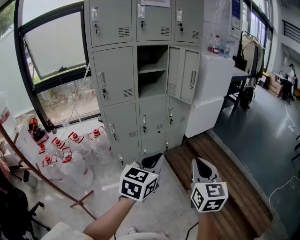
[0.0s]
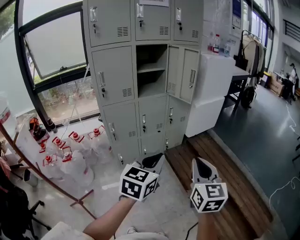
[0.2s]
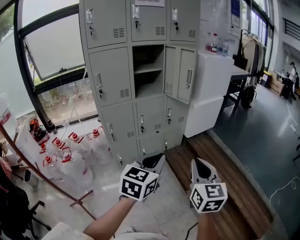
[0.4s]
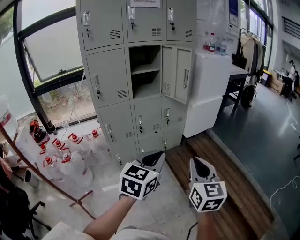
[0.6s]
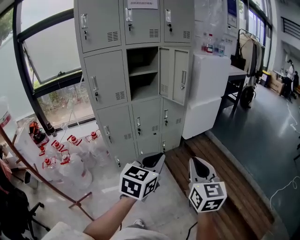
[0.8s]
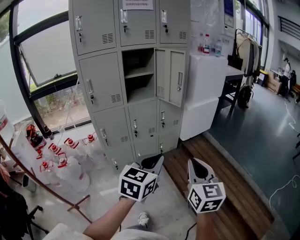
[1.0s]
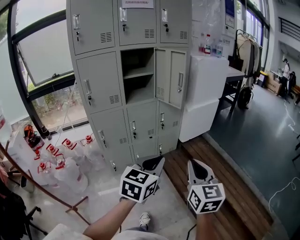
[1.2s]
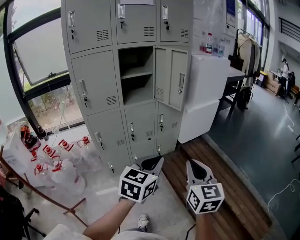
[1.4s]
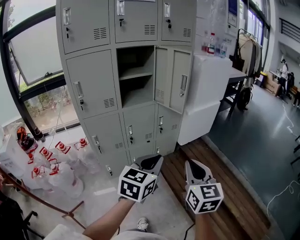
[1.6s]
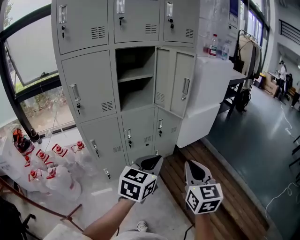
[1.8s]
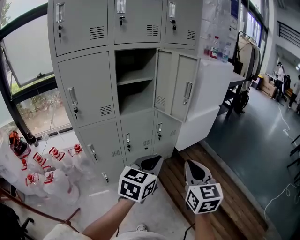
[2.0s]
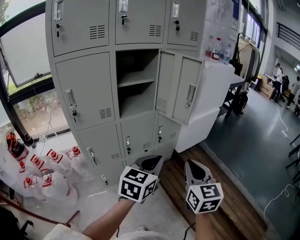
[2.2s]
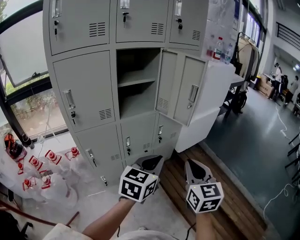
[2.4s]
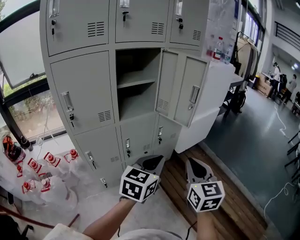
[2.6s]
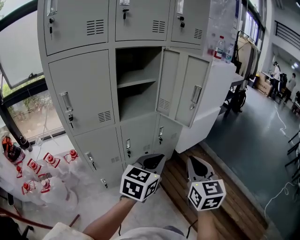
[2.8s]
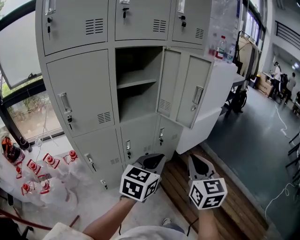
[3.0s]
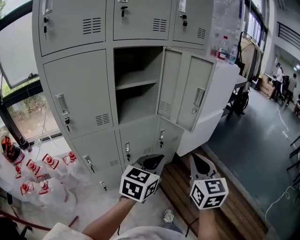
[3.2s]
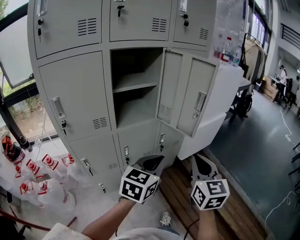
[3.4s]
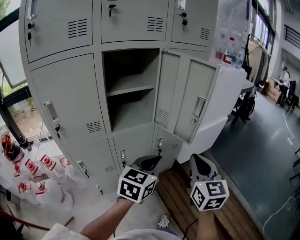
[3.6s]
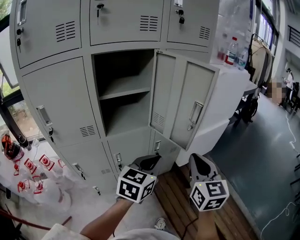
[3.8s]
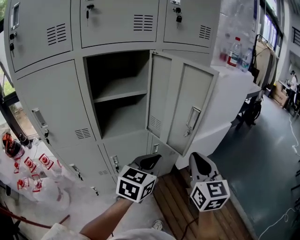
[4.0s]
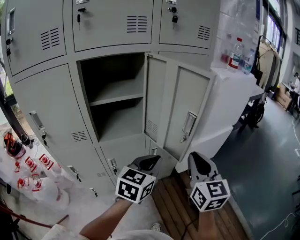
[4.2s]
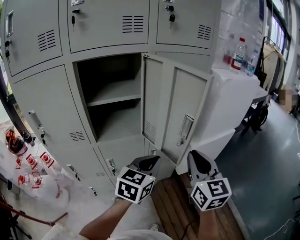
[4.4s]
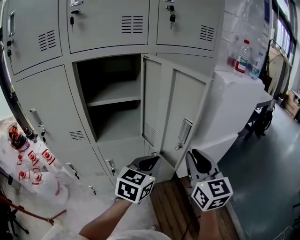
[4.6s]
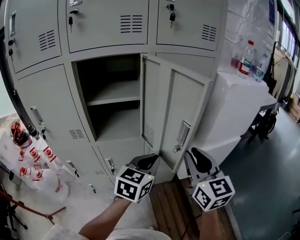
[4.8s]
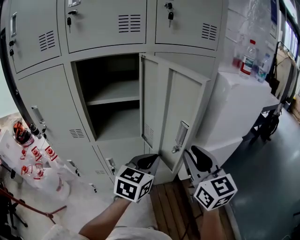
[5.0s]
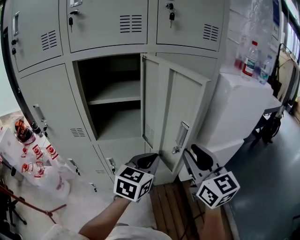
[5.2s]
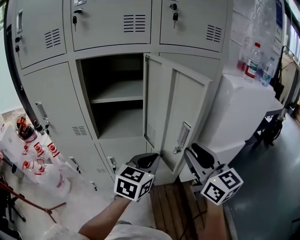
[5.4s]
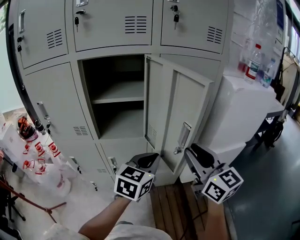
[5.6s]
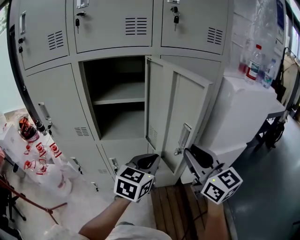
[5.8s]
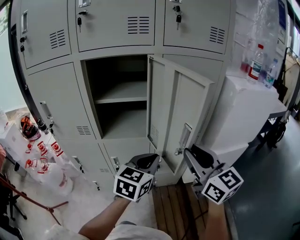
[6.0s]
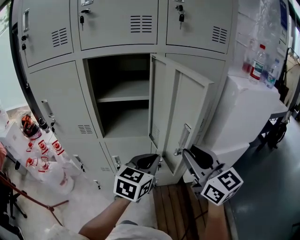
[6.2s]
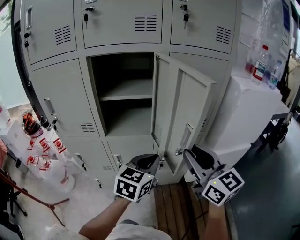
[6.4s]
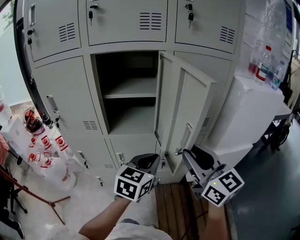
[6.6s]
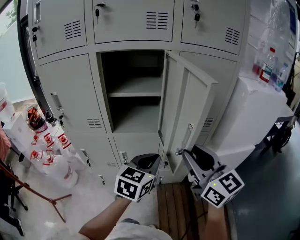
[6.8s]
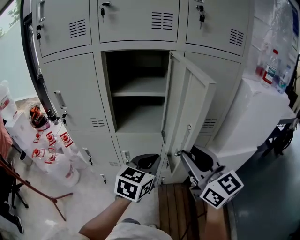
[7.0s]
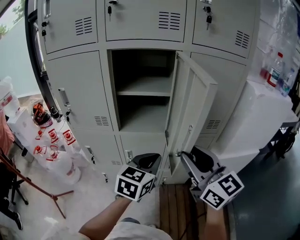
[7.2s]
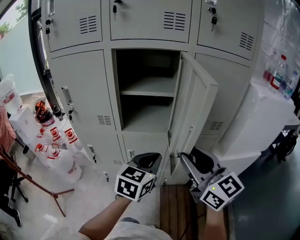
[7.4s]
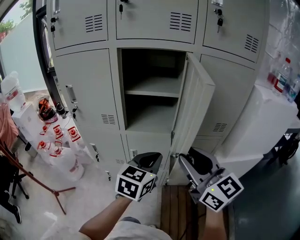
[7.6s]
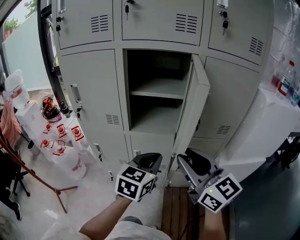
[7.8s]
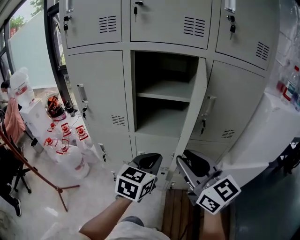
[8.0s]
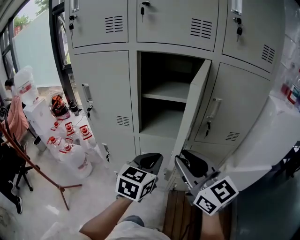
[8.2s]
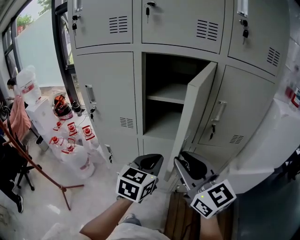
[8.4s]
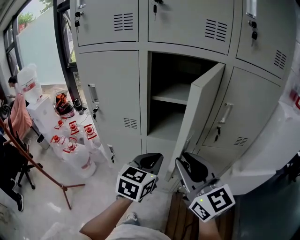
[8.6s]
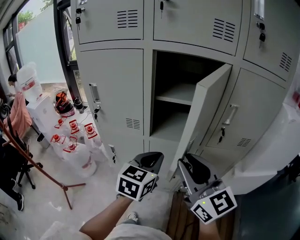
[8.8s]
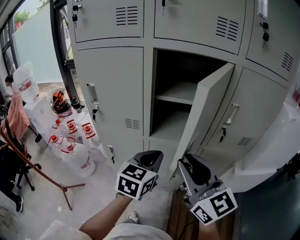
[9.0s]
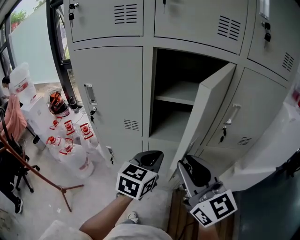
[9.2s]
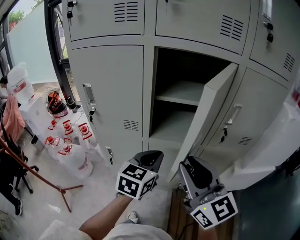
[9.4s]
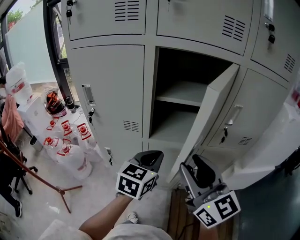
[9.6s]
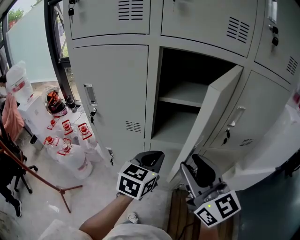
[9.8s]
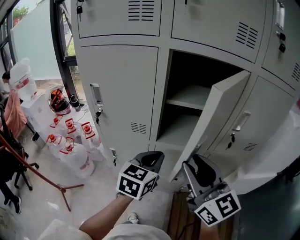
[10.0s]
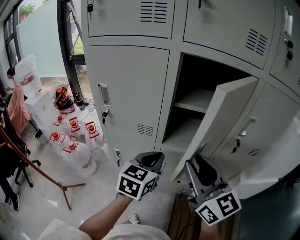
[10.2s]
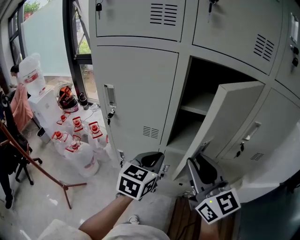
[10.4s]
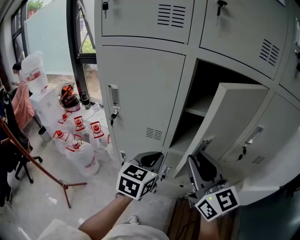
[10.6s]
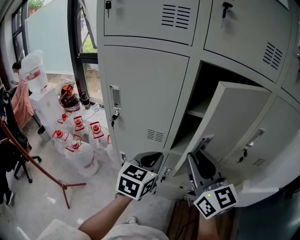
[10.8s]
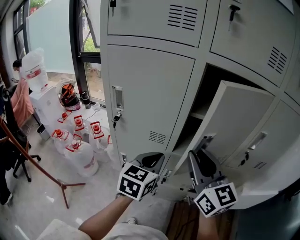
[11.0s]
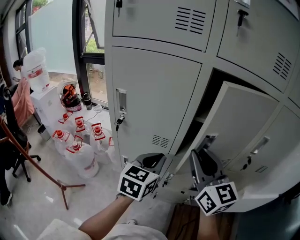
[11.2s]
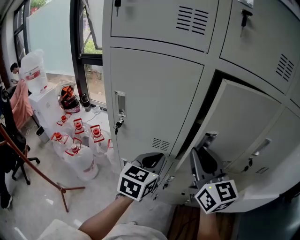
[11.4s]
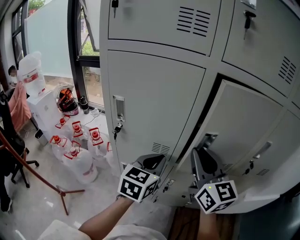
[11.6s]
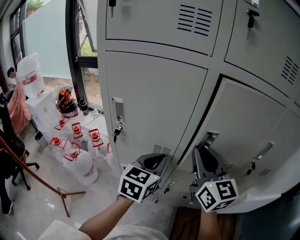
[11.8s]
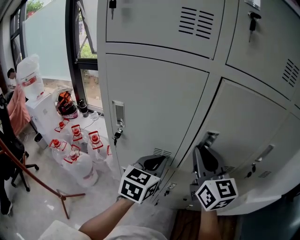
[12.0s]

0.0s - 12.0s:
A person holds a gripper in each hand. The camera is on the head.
0.0s - 1.6s: Both grippers travel together forward, roughly 15 cm.
1.6s - 3.0s: The grippers both shift forward and to the left by some 20 cm.
3.0s - 4.4s: Both grippers travel together forward, roughly 25 cm.
4.4s - 6.0s: The right gripper changes place by some 5 cm, and changes its angle by some 30 degrees.
6.0s - 7.6s: Both grippers move to the left, some 10 cm.
7.6s - 9.0s: The right gripper shifts approximately 10 cm to the left, while the left gripper is displaced to the left and forward by about 10 cm.
9.0s - 10.4s: The left gripper shifts about 10 cm to the left, while the right gripper shifts approximately 10 cm forward and to the left.
10.4s - 12.0s: The left gripper shifts roughly 10 cm forward and to the left; the right gripper goes approximately 15 cm forward.

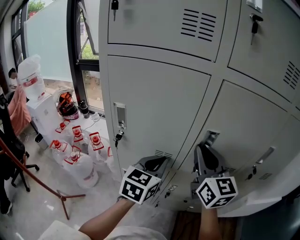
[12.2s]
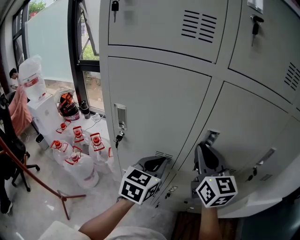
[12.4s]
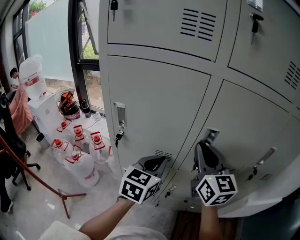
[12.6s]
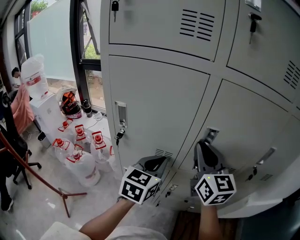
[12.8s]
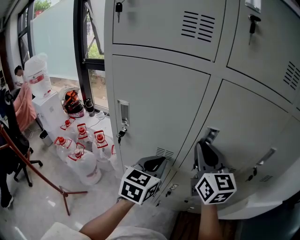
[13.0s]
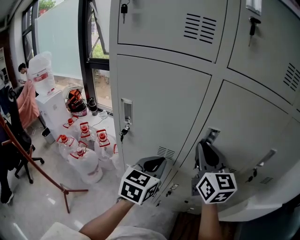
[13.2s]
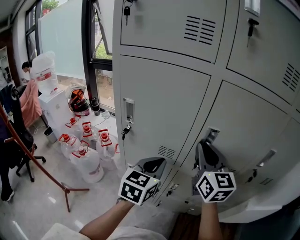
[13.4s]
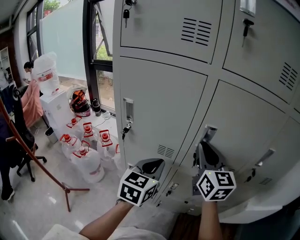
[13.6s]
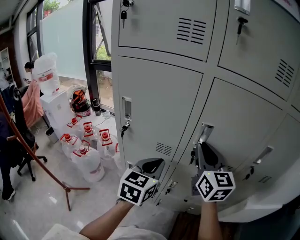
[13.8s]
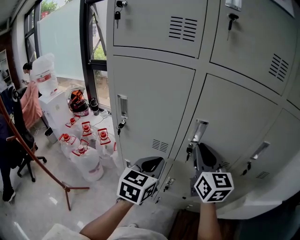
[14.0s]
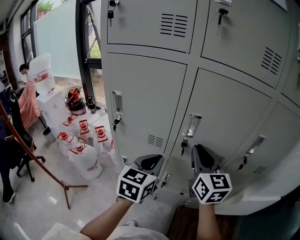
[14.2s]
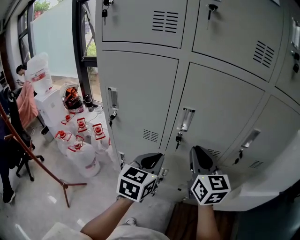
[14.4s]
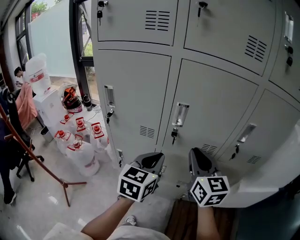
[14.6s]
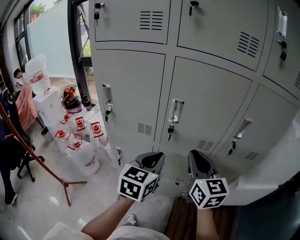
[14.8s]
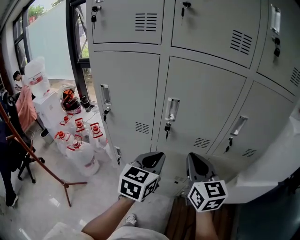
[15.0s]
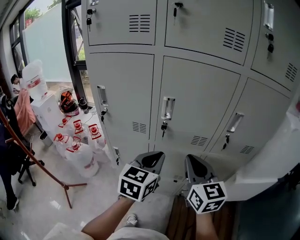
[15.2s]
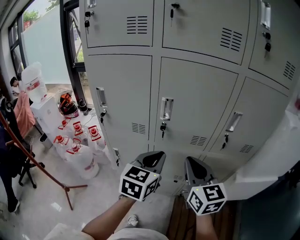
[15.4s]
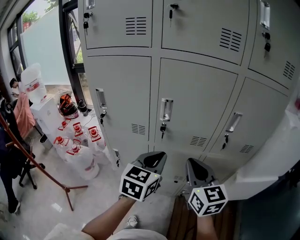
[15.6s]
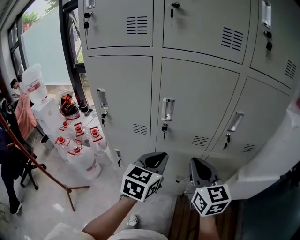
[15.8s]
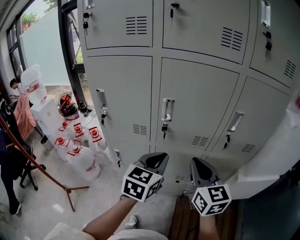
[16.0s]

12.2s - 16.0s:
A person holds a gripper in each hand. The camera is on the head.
12.2s - 13.4s: The grippers stay close to where they were, moving slightly.
13.4s - 14.8s: The right gripper travels backward and to the right by about 15 cm. Meanwhile the left gripper goes approximately 15 cm to the right and backward.
14.8s - 16.0s: The right gripper changes place by about 5 cm.

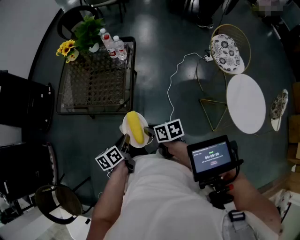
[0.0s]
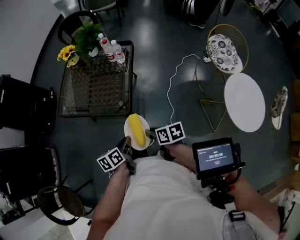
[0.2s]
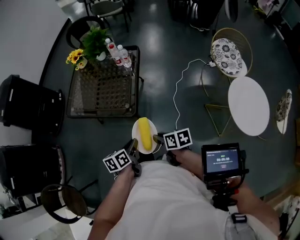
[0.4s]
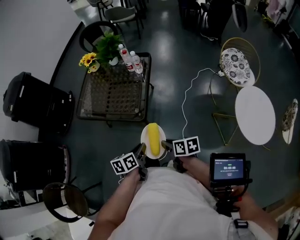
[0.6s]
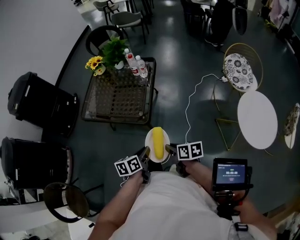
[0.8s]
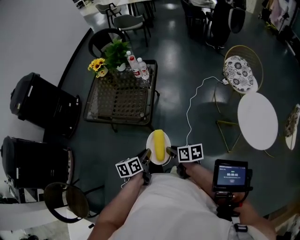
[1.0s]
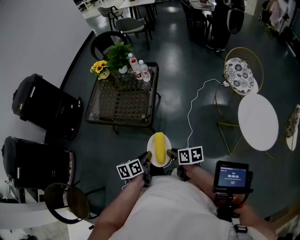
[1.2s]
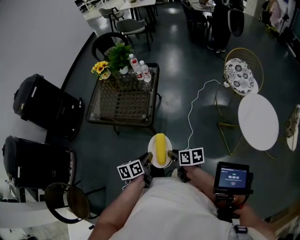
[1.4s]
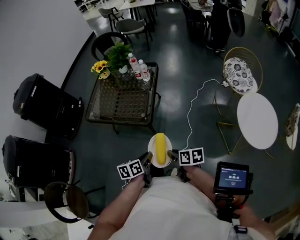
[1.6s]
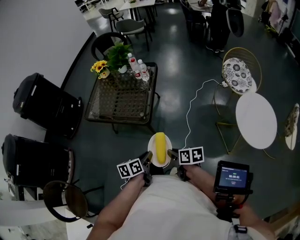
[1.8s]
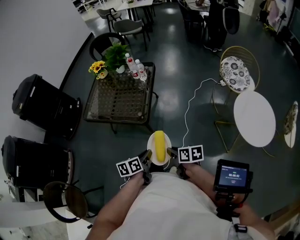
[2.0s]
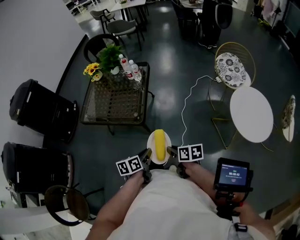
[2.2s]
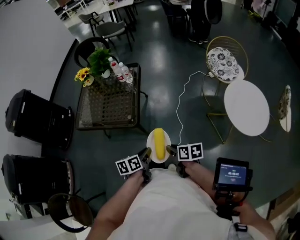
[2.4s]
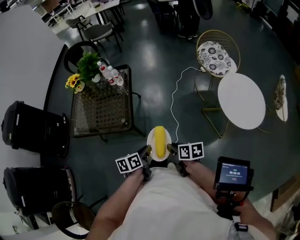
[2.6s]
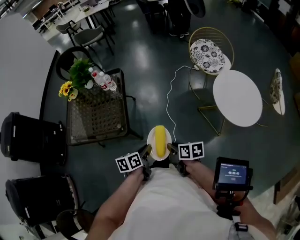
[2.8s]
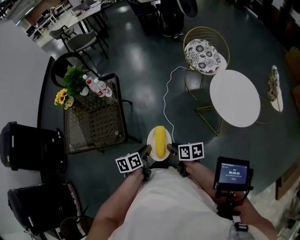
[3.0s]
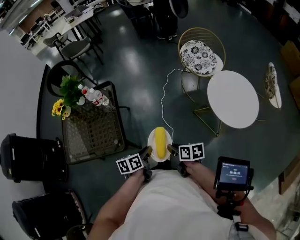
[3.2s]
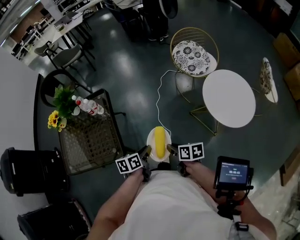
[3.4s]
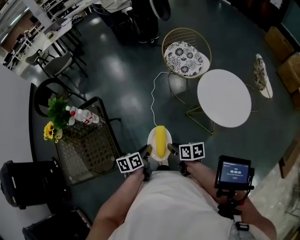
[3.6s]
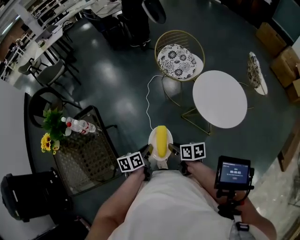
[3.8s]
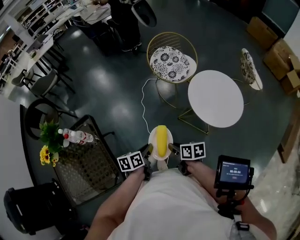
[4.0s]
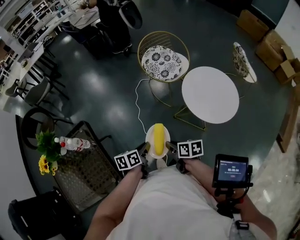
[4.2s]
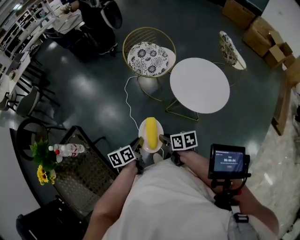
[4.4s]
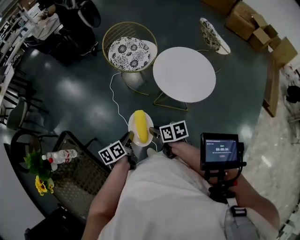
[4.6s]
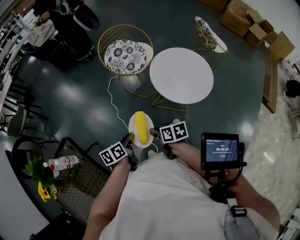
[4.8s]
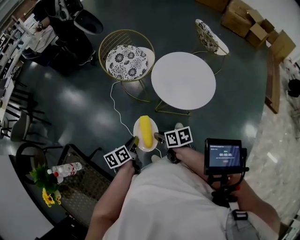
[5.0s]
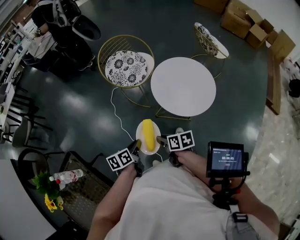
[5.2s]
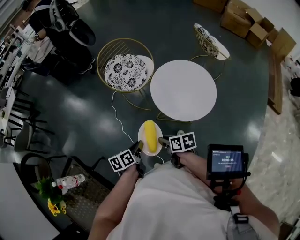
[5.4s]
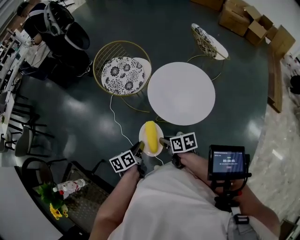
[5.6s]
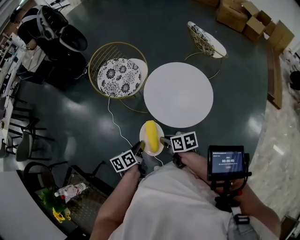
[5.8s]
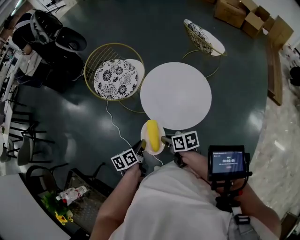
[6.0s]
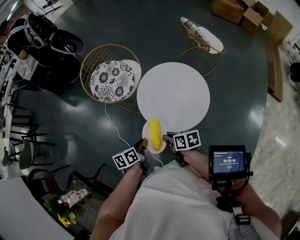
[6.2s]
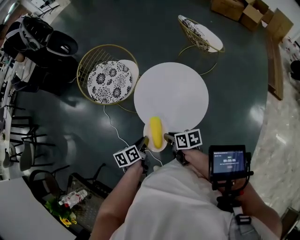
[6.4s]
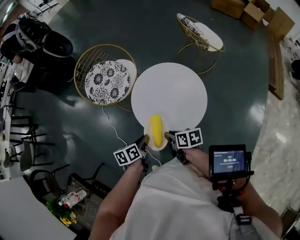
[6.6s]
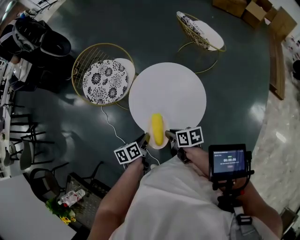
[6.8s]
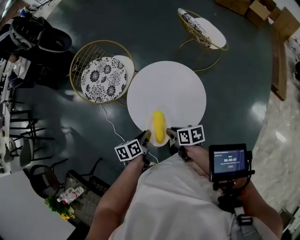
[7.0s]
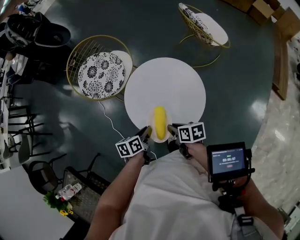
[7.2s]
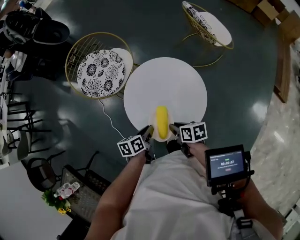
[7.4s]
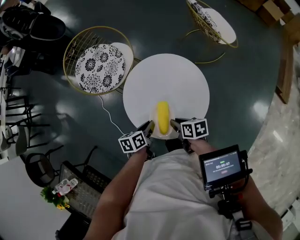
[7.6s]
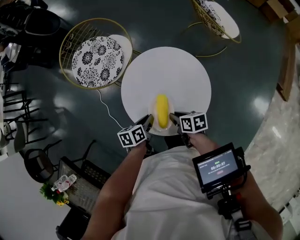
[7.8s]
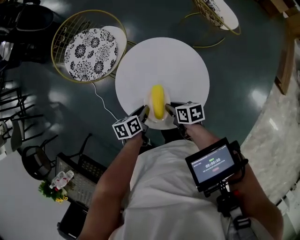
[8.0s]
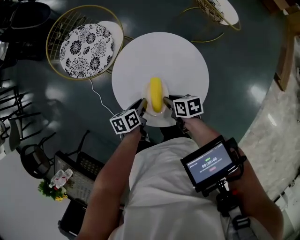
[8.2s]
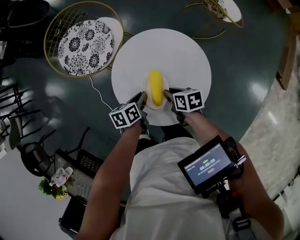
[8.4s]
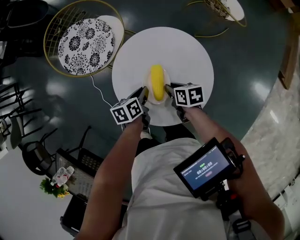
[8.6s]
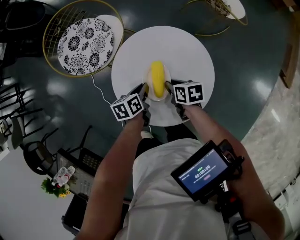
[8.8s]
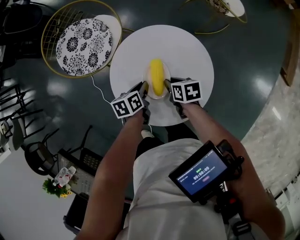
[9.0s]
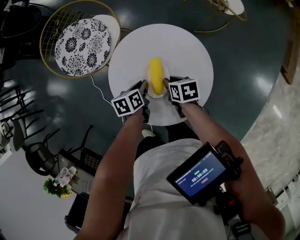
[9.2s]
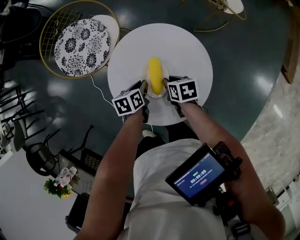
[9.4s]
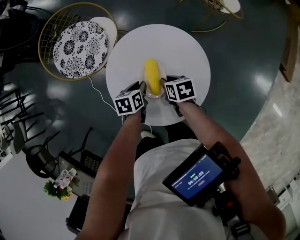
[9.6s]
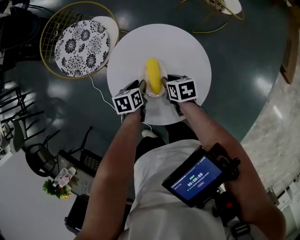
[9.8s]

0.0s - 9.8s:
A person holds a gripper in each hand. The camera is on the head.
0.0s - 1.4s: The two grippers go about 10 cm backward.
1.4s - 2.8s: The left gripper moves to the right and forward, approximately 15 cm; the right gripper shifts some 10 cm to the right.
2.8s - 4.2s: The right gripper changes place by approximately 20 cm, and turns by approximately 30 degrees. The left gripper ends up approximately 25 cm from where it was, and turns by roughly 30 degrees.
4.2s - 5.6s: The two grippers go roughly 15 cm to the right and forward.
5.6s - 7.0s: The two grippers go some 25 cm to the right and forward.
7.0s - 8.4s: Both grippers travel together forward, downward and to the right, about 15 cm.
8.4s - 9.8s: The left gripper moves roughly 5 cm. The right gripper changes place by some 5 cm.
